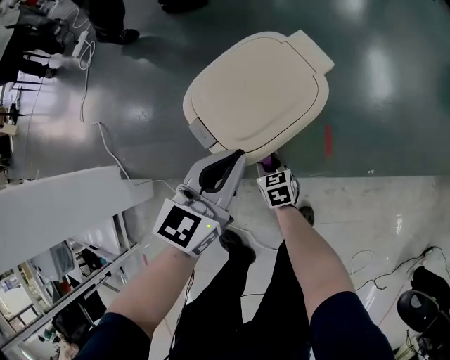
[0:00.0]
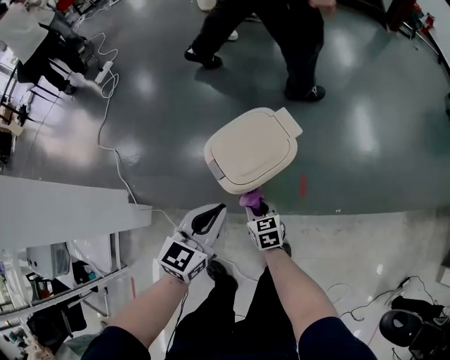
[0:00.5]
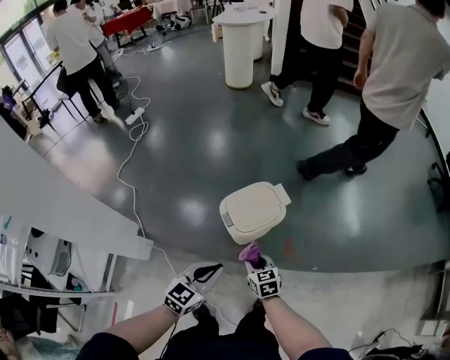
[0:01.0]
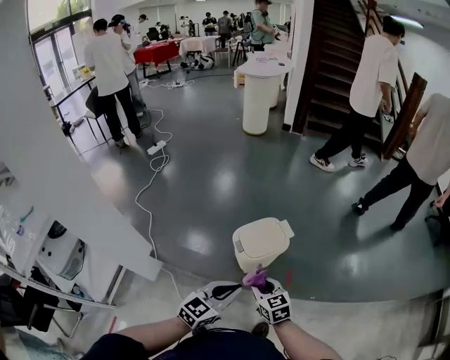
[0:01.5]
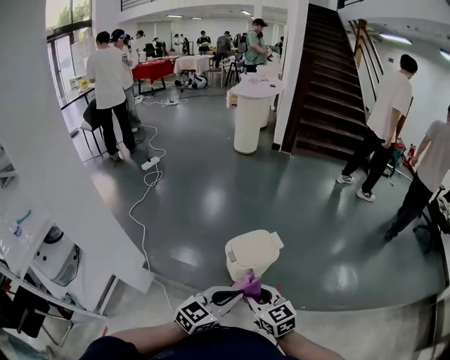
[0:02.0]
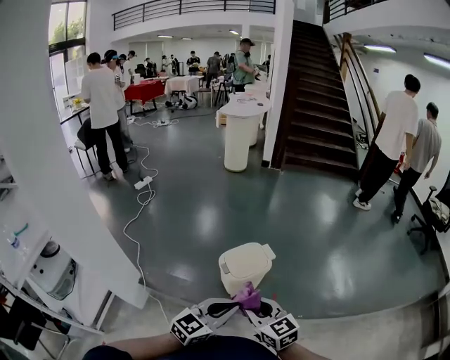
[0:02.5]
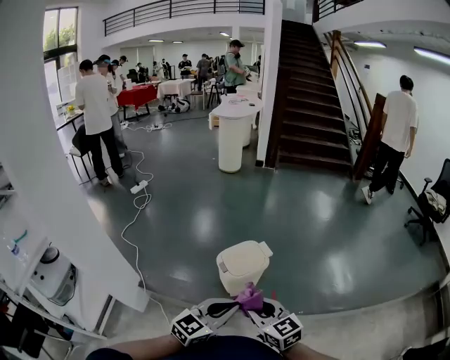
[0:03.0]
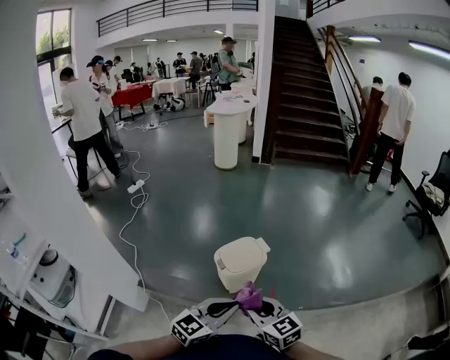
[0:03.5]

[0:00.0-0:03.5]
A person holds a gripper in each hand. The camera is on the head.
0:00.0 to 0:02.0: The right gripper moves upward, about 60 cm, and rotates approximately 40 degrees. Meanwhile the left gripper shifts some 40 cm upward and backward.
0:02.0 to 0:03.5: The two grippers go some 5 cm backward.

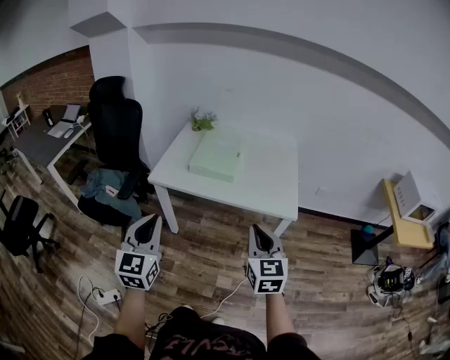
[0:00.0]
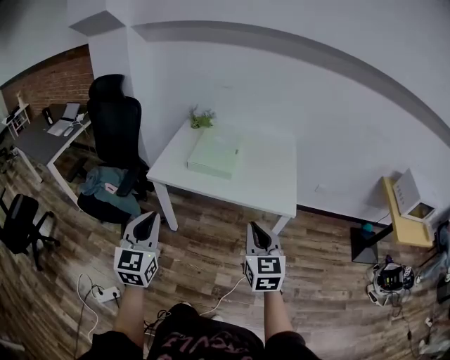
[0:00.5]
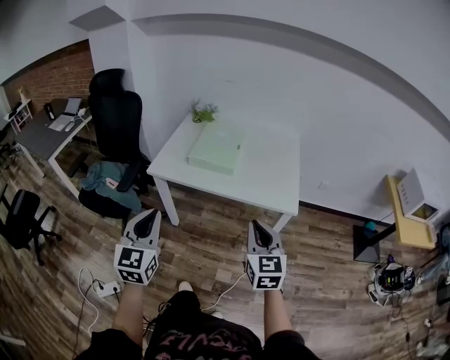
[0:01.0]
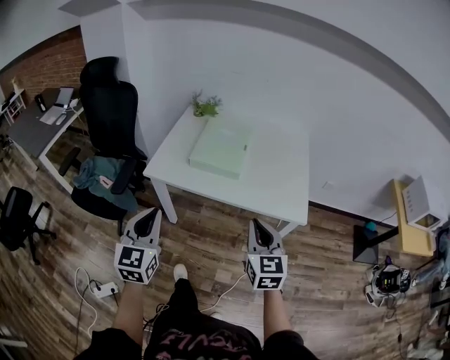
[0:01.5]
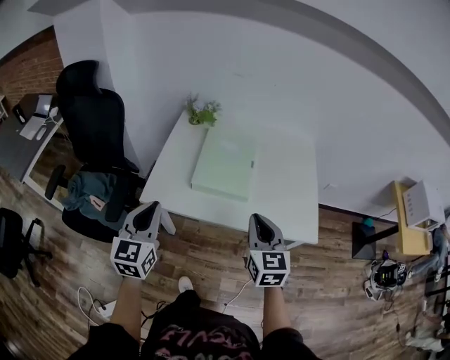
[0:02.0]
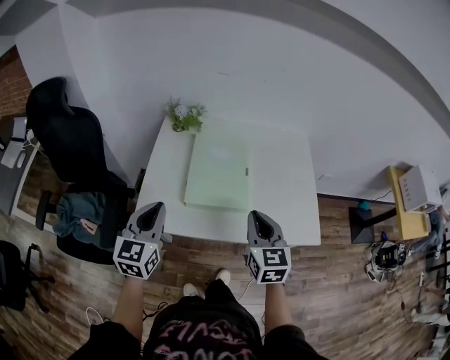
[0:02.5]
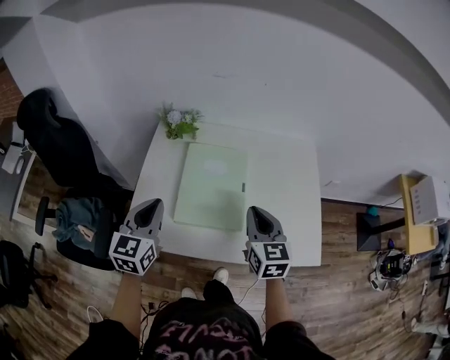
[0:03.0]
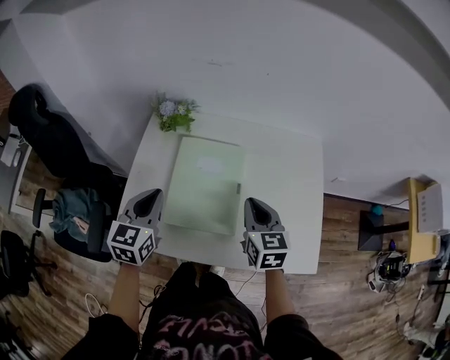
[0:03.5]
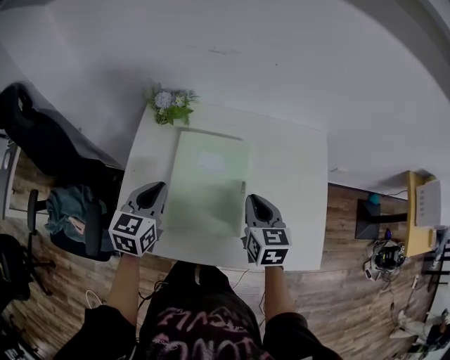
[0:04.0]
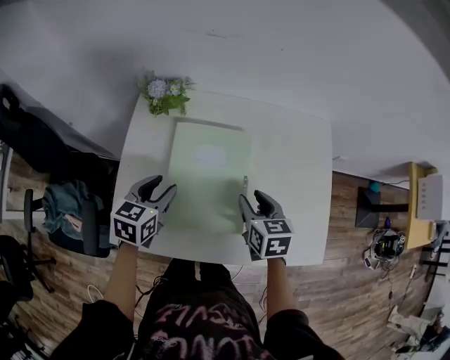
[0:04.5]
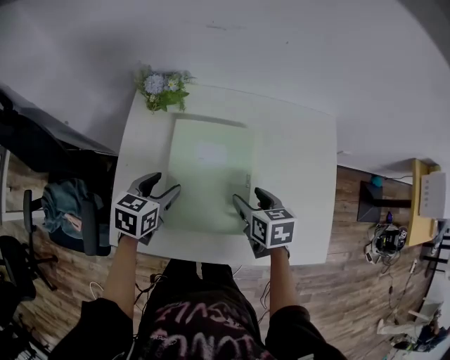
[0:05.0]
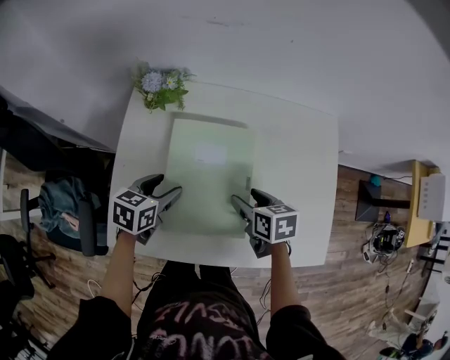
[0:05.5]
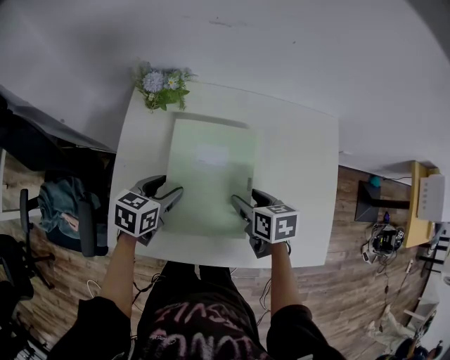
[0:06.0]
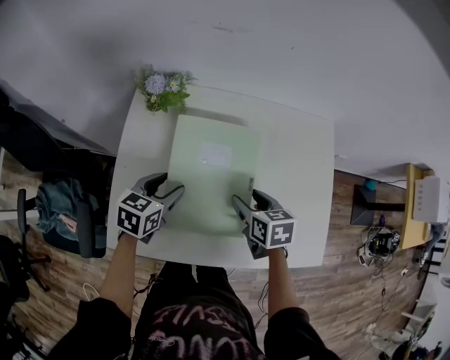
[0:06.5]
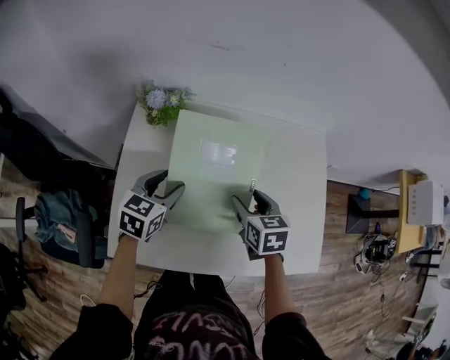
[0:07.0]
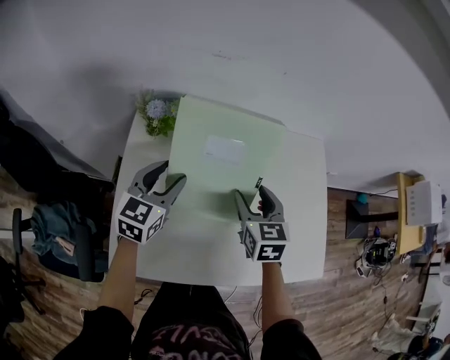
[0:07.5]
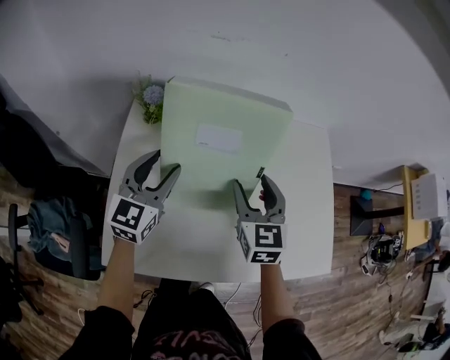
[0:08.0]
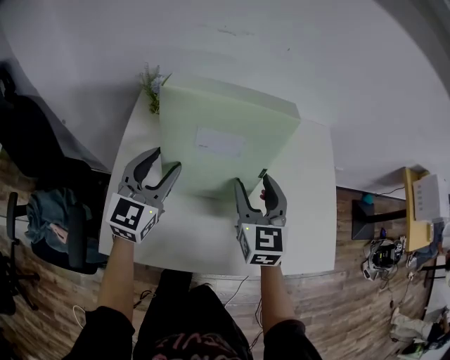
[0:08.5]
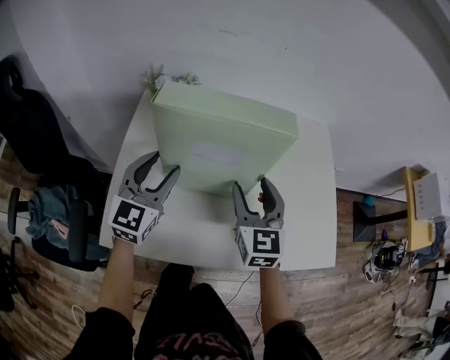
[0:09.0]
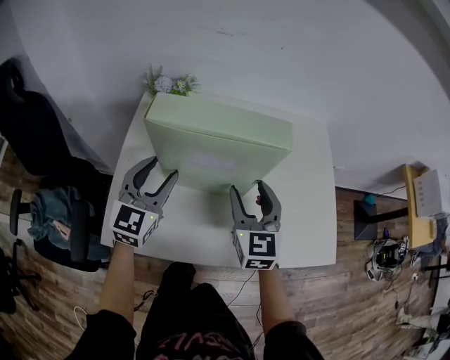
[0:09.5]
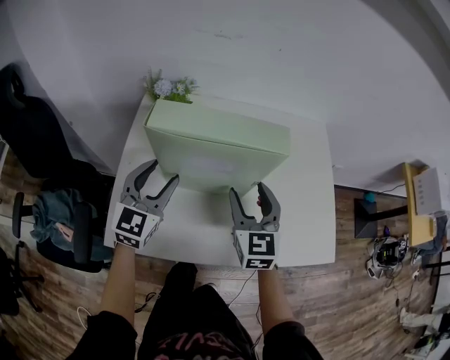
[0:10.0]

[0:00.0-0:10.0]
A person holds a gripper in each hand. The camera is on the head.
0:00.0 to 0:02.0: The two grippers go roughly 25 cm forward.
0:02.0 to 0:04.0: The two grippers go roughly 30 cm forward. The left gripper turns by some 20 degrees.
0:04.0 to 0:06.0: The grippers both shift downward by approximately 10 cm. The left gripper changes its angle by about 30 degrees, and opens its fingers. The right gripper turns by approximately 30 degrees, and opens.
0:06.0 to 0:08.0: The left gripper heads upward and forward, covering some 10 cm, and points its fingers approximately 30 degrees further upward, while the right gripper moves upward, approximately 10 cm, and angles its fingers upward, by some 30 degrees.
0:08.0 to 0:10.0: Both grippers move backward, about 10 cm.

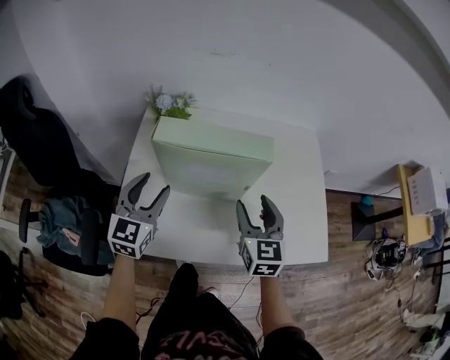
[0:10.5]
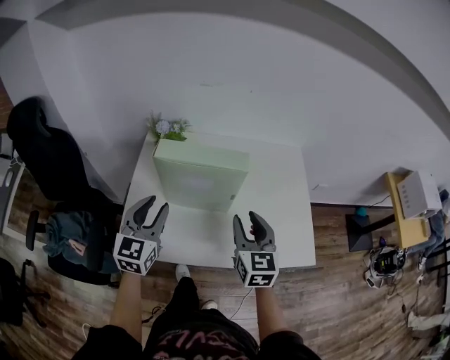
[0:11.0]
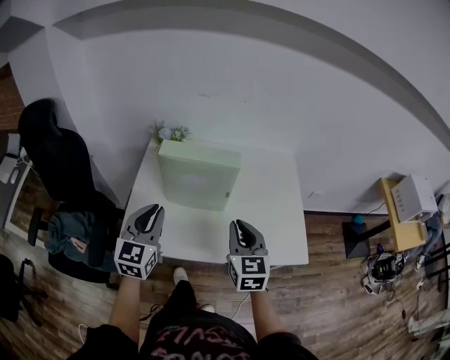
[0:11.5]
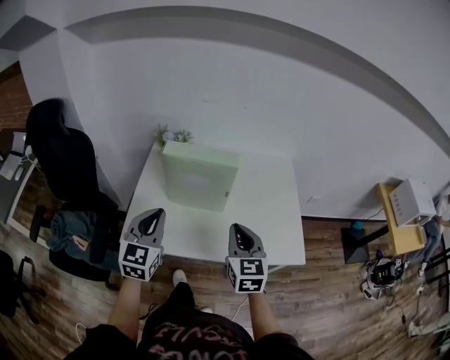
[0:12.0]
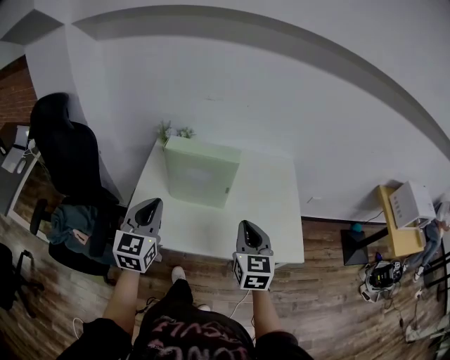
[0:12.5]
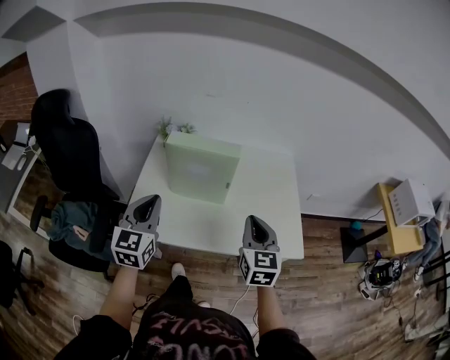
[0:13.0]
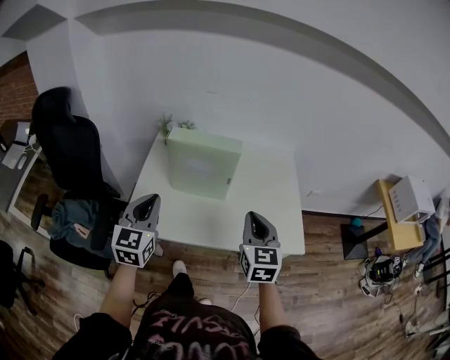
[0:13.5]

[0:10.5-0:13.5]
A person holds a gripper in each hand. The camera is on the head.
0:10.5 to 0:12.0: The two grippers go about 15 cm backward and upward. The left gripper closes up. Meanwhile the right gripper closes up.
0:12.0 to 0:13.5: There are only small adjustments of the grippers.

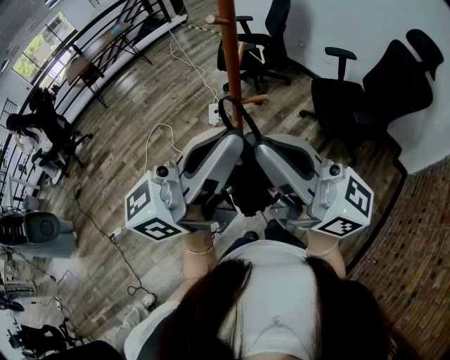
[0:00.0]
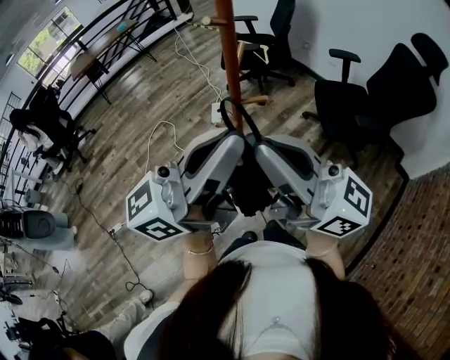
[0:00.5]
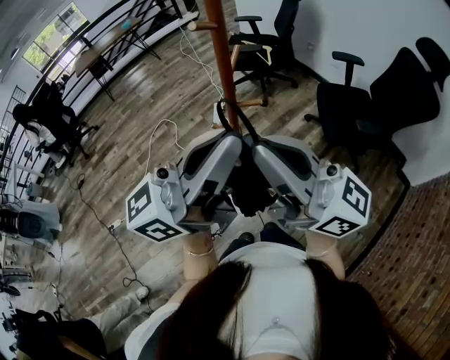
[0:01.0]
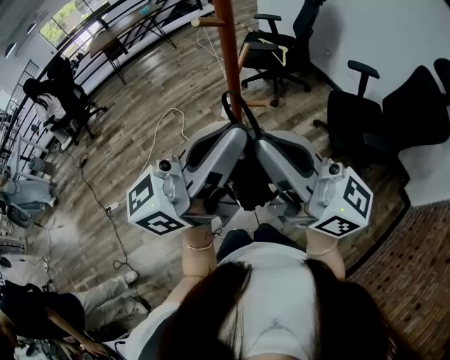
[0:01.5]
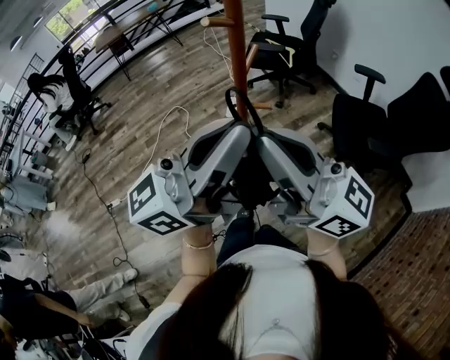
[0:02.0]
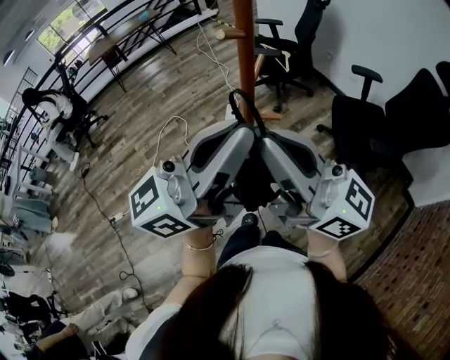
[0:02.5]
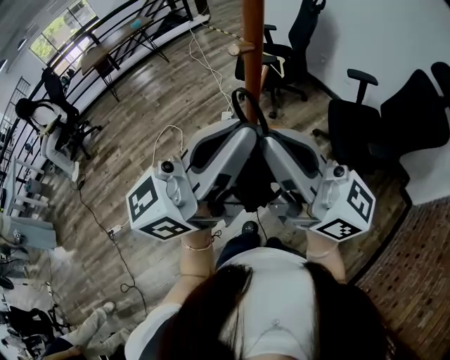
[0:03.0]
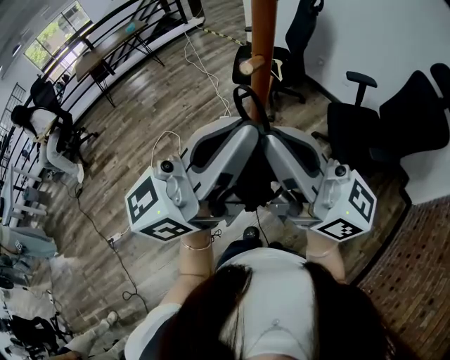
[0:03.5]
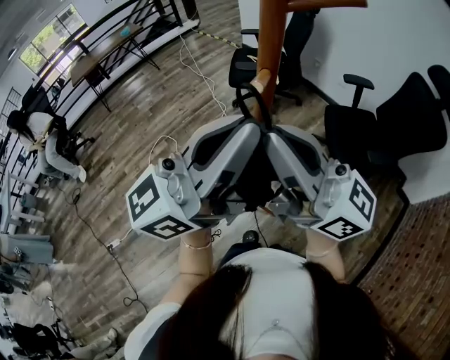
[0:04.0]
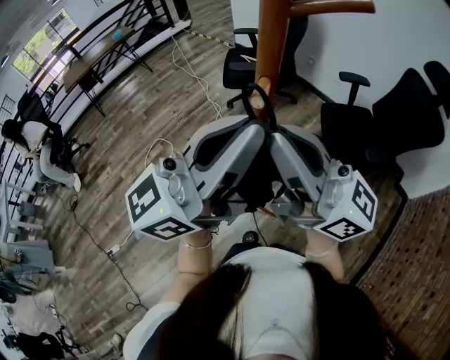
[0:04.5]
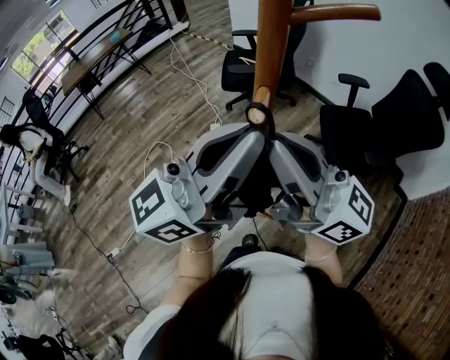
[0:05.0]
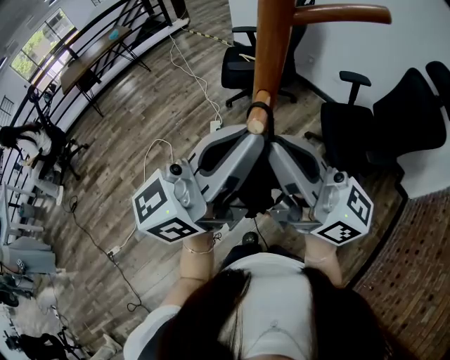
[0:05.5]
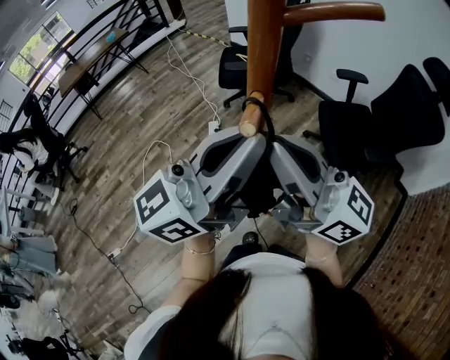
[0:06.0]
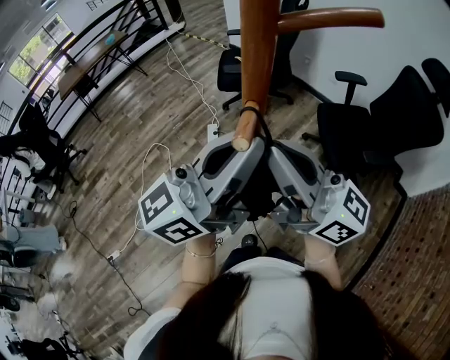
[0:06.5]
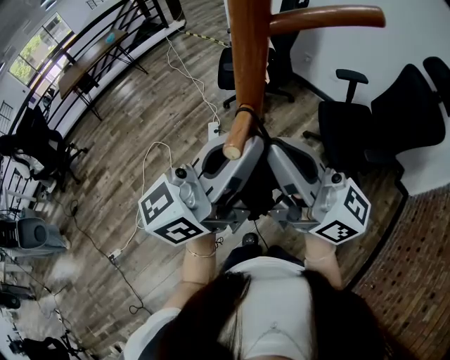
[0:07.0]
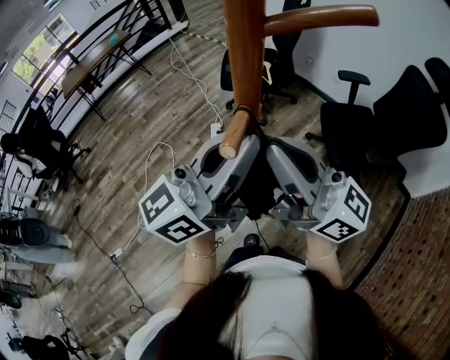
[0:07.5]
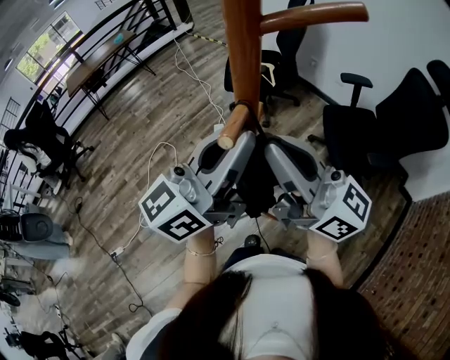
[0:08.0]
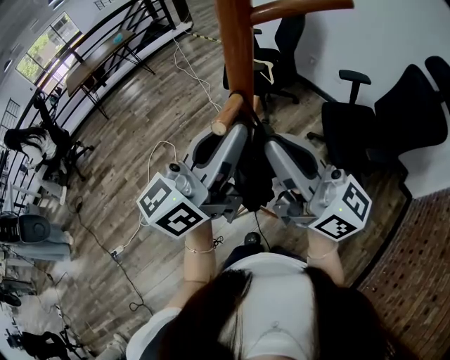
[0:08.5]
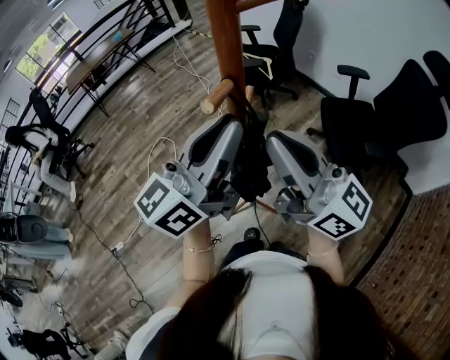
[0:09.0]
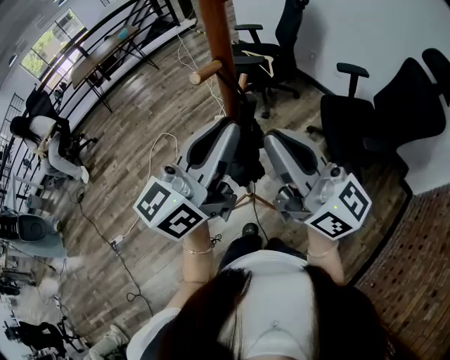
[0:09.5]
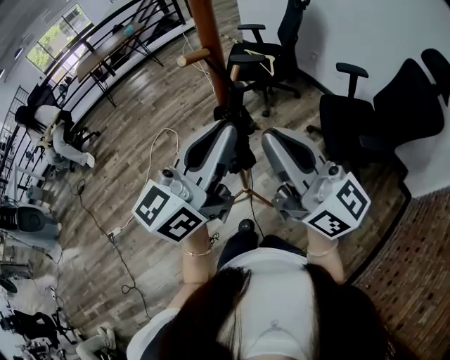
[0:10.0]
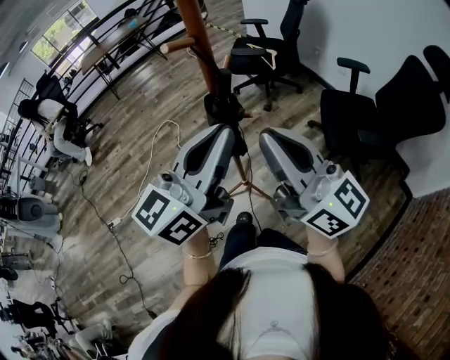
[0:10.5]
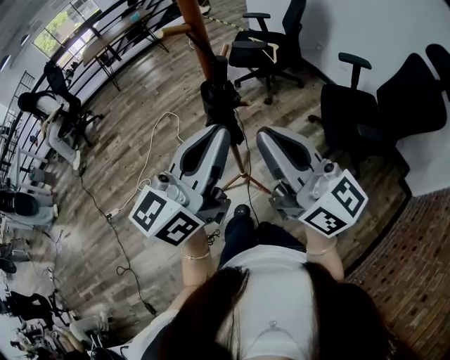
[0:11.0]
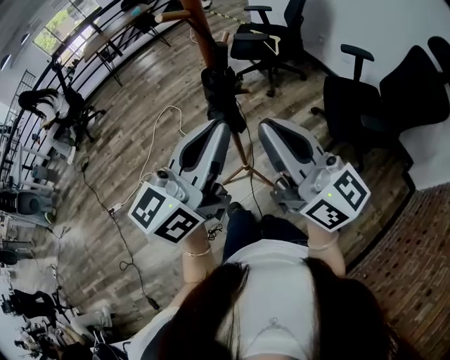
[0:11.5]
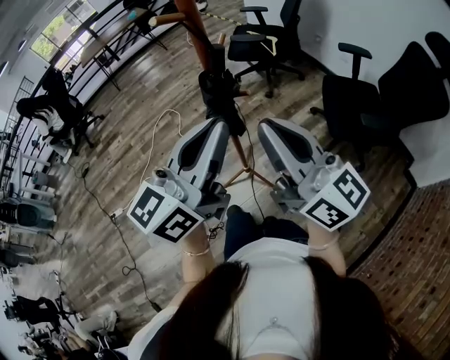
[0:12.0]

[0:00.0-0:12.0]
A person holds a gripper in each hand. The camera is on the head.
0:00.0 to 0:02.0: The right gripper shifts by some 5 cm. Meanwhile the left gripper shifts by roughly 5 cm.
0:02.0 to 0:04.0: The grippers both shift forward by some 15 cm.
0:04.0 to 0:08.0: The grippers move only a little.
0:08.0 to 0:10.0: The right gripper goes about 10 cm backward and to the right, while the left gripper travels backward by roughly 10 cm.
0:10.0 to 0:12.0: The left gripper travels backward by about 5 cm, while the right gripper shifts by approximately 5 cm.
